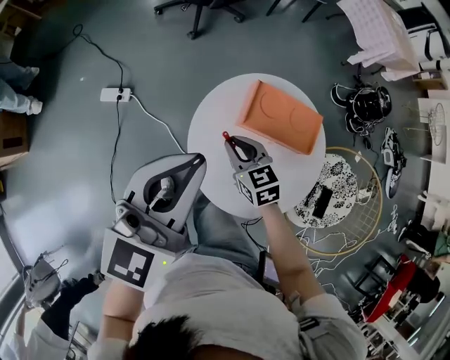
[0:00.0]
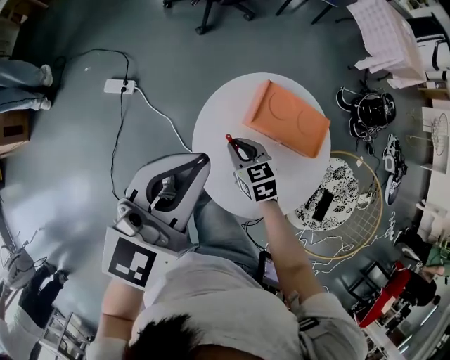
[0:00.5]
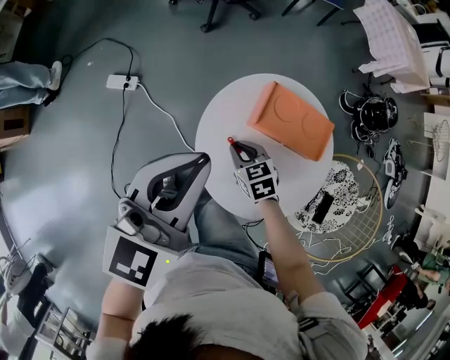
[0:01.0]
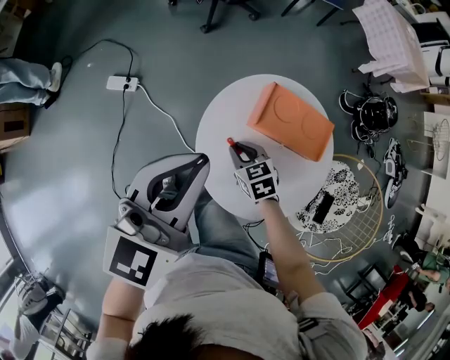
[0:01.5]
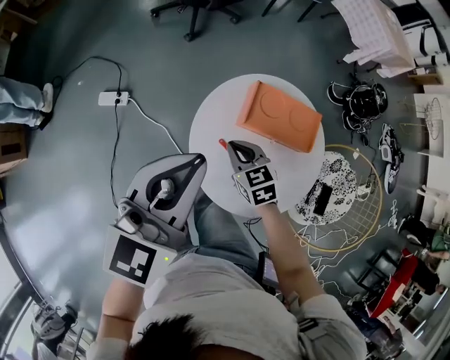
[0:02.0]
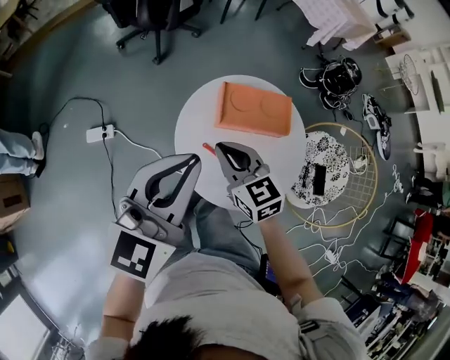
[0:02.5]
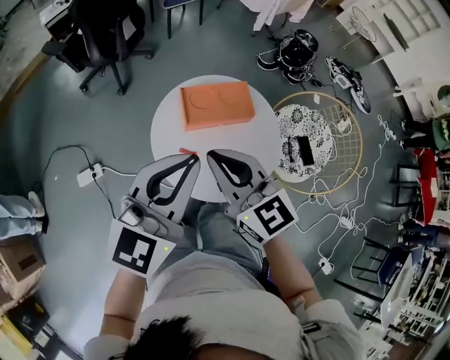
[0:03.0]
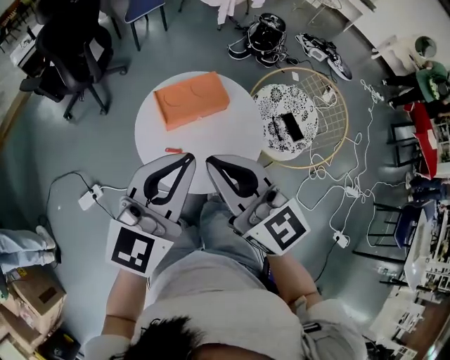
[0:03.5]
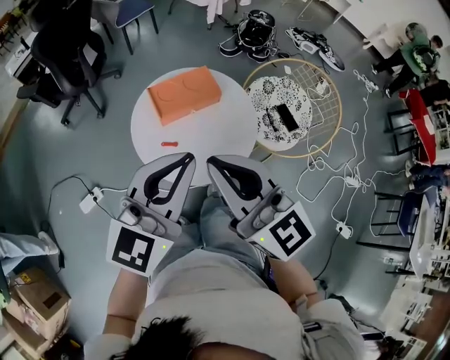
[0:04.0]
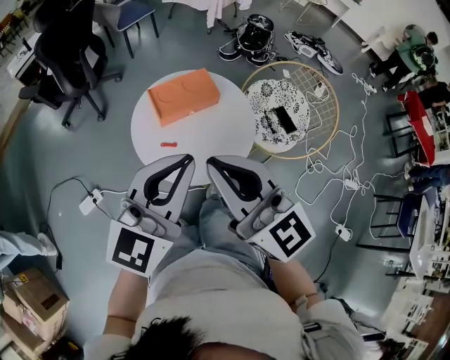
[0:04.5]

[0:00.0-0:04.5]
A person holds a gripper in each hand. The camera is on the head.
0:02.0 to 0:04.5: The right gripper travels upward by roughly 35 cm, and angles its fingers upward, by about 50 degrees; the left gripper shifts by some 15 cm, and changes its angle by approximately 40 degrees.

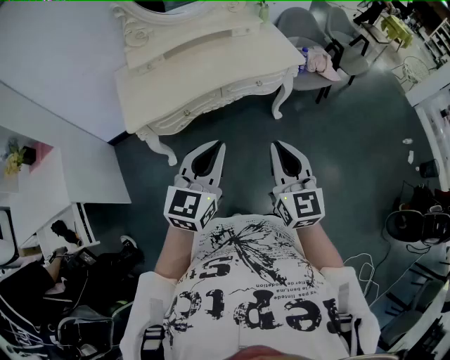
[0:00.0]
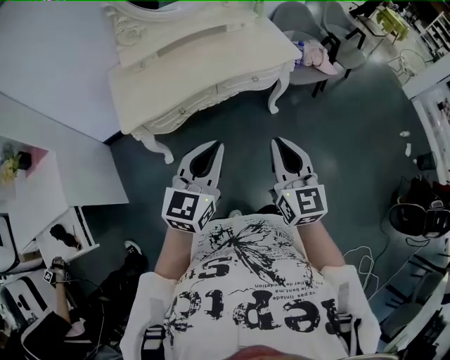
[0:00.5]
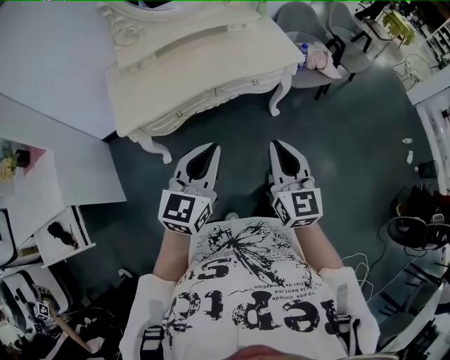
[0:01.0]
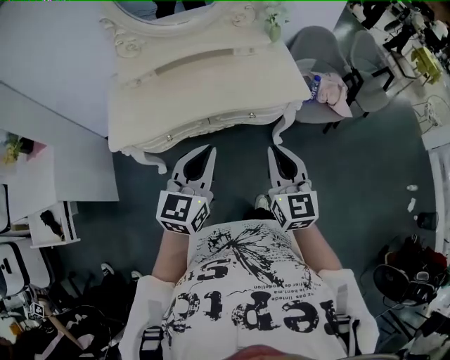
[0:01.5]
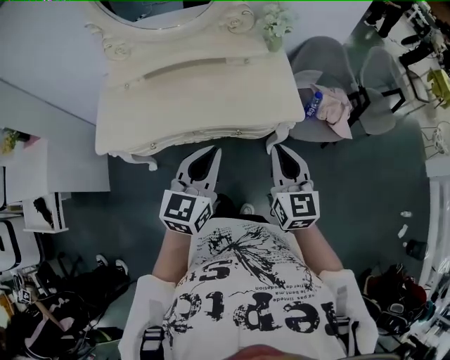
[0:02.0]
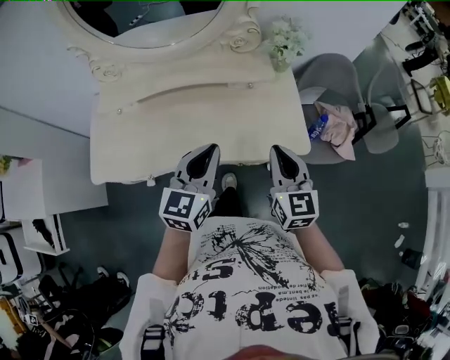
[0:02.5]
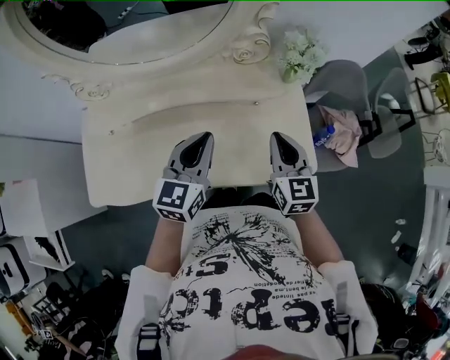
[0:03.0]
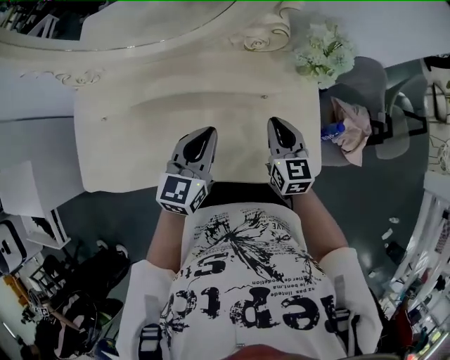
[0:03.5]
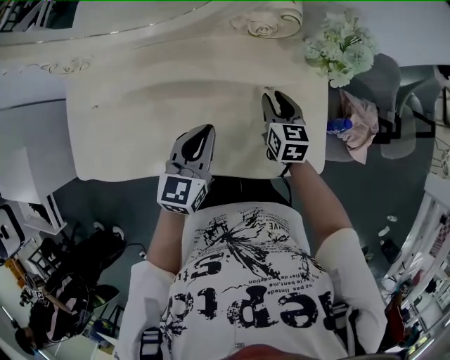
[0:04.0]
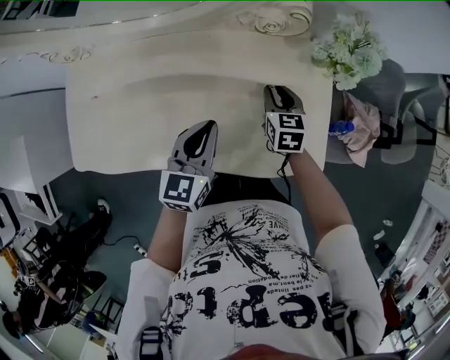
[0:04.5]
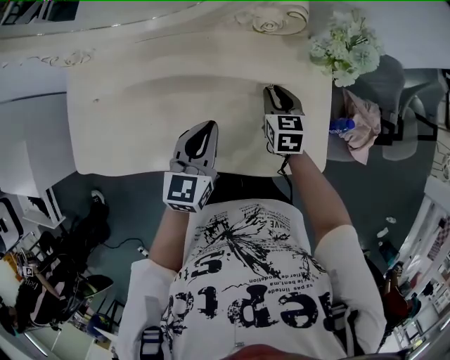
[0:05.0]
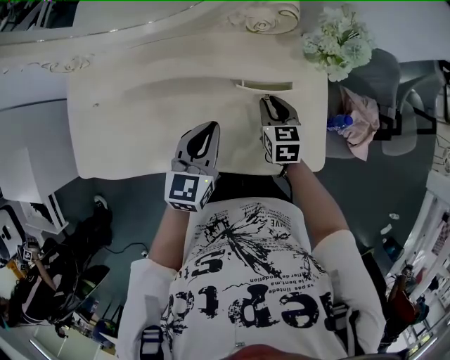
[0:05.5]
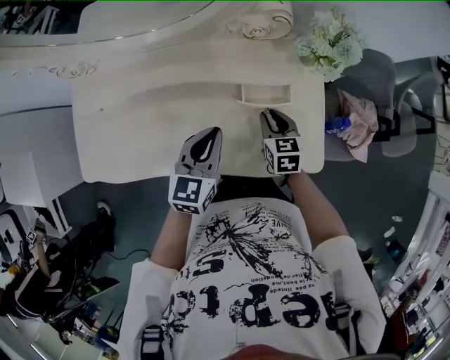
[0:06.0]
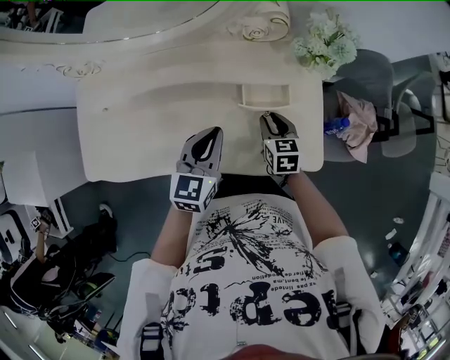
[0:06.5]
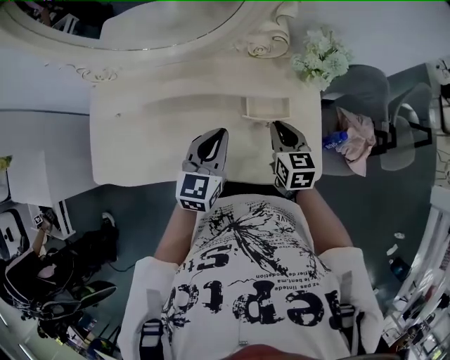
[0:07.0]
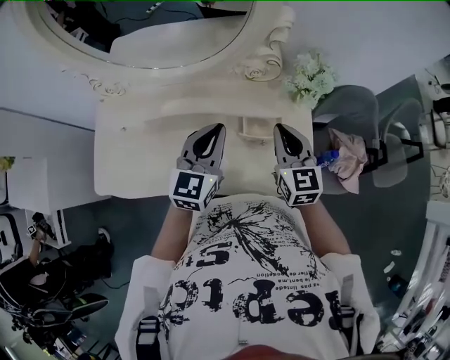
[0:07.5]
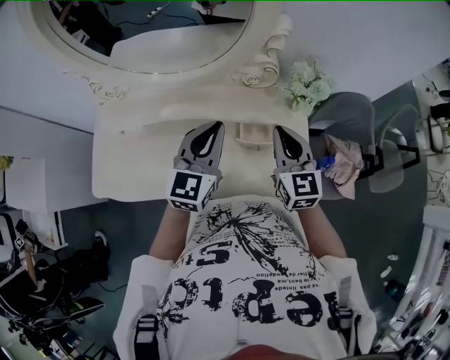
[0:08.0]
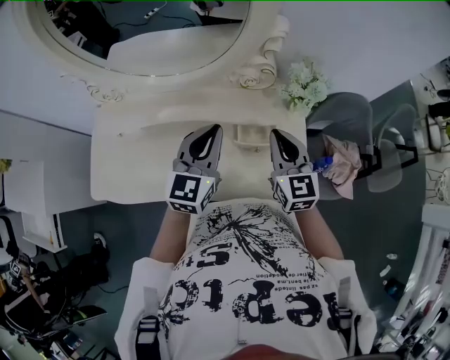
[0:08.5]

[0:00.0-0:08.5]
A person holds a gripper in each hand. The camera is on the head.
0:00.0 to 0:02.0: The two grippers go approximately 35 cm forward and to the right.
0:02.0 to 0:04.0: Both grippers travel together forward and downward, roughly 40 cm. The right gripper rotates some 20 degrees, and opens up.
0:04.0 to 0:06.5: The right gripper is displaced backward by roughly 5 cm.
0:06.5 to 0:08.5: The left gripper travels upward and forward by some 15 cm, while the right gripper goes some 25 cm upward, rotates roughly 30 degrees, and closes its fingers.

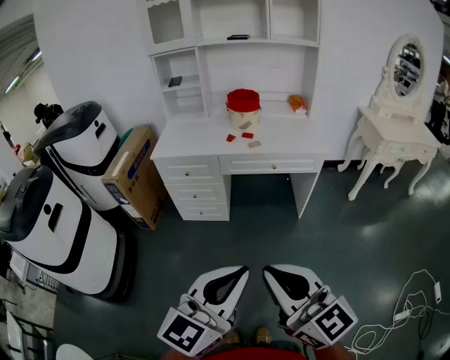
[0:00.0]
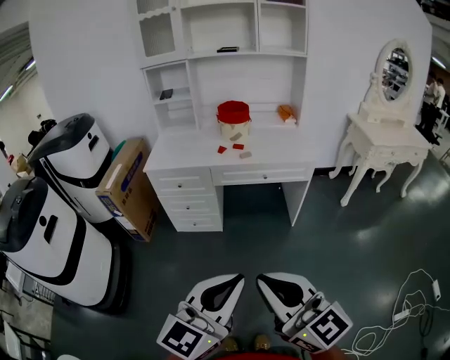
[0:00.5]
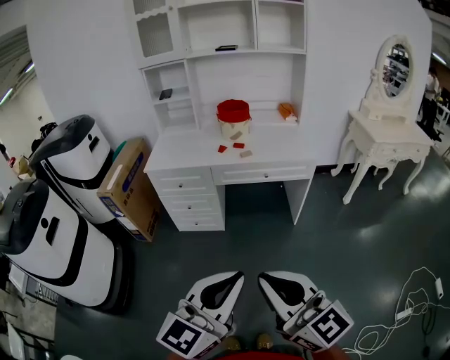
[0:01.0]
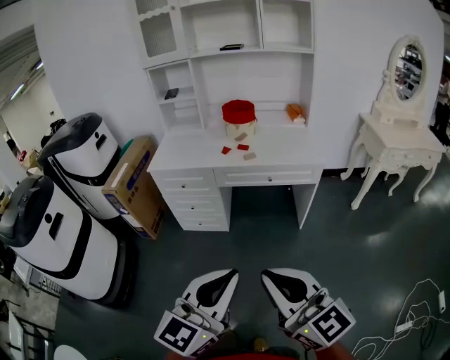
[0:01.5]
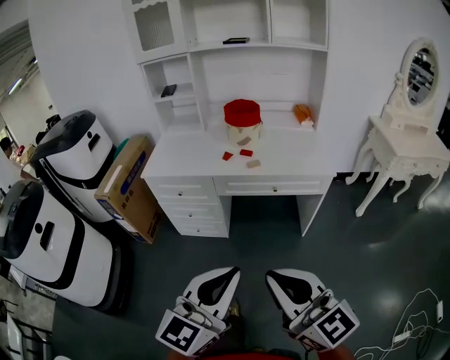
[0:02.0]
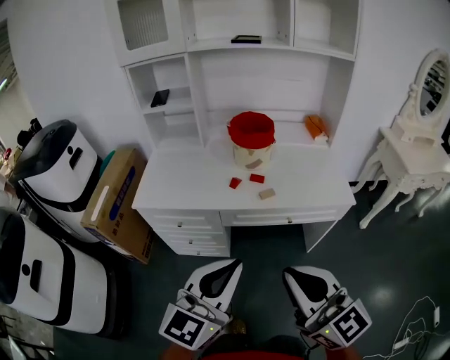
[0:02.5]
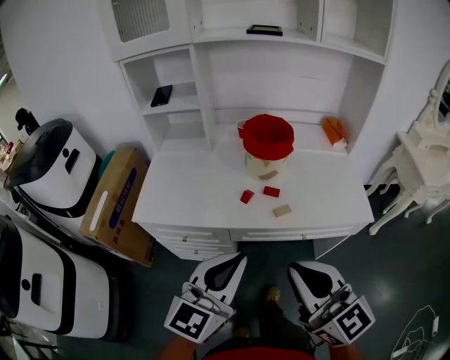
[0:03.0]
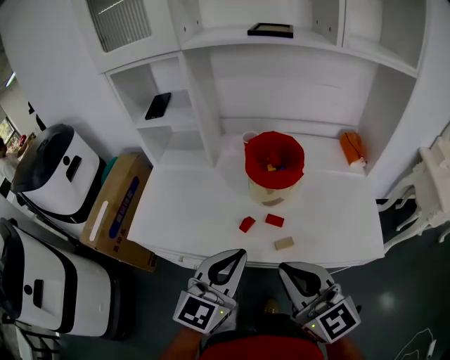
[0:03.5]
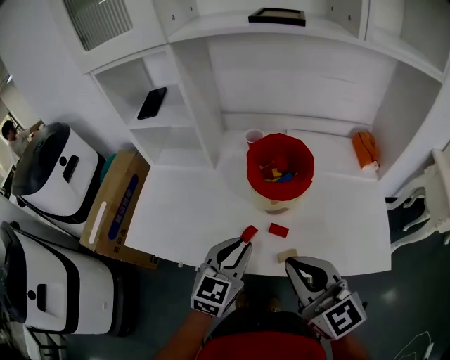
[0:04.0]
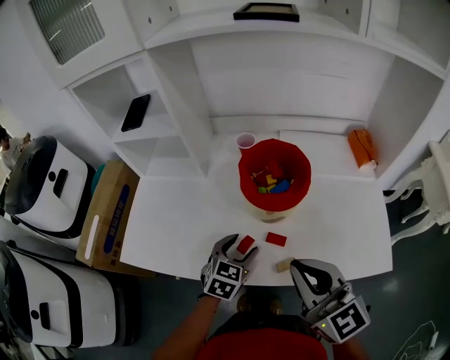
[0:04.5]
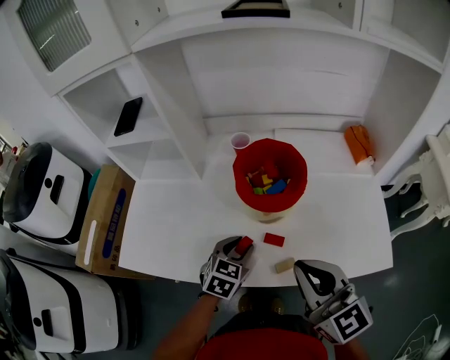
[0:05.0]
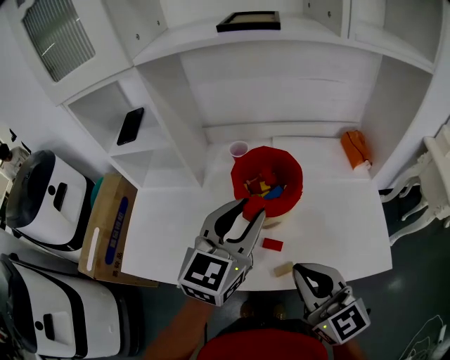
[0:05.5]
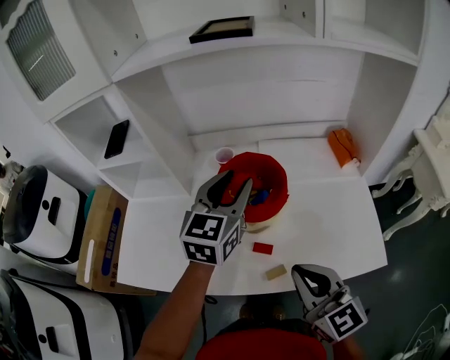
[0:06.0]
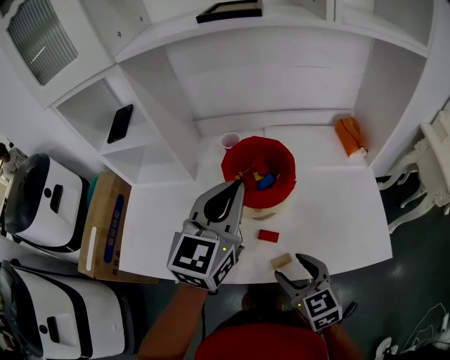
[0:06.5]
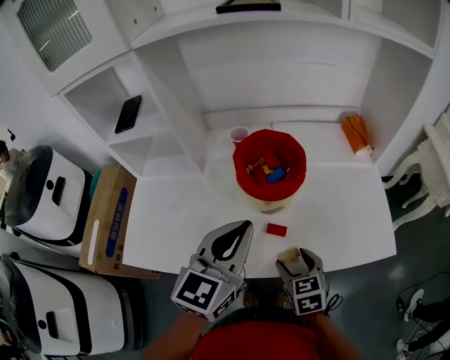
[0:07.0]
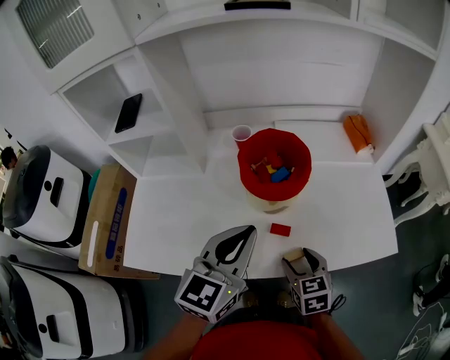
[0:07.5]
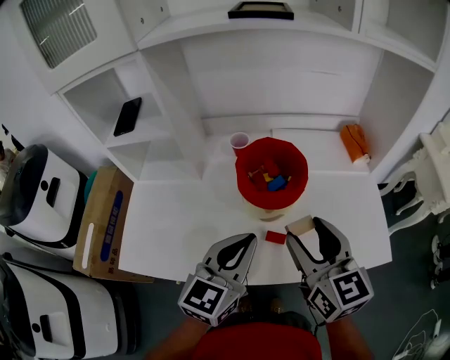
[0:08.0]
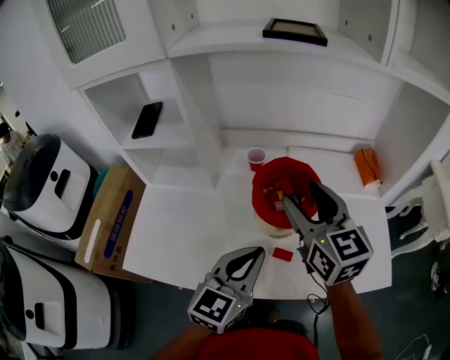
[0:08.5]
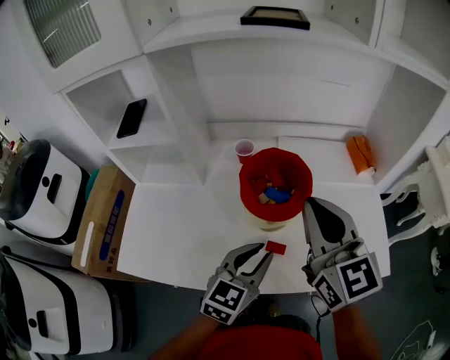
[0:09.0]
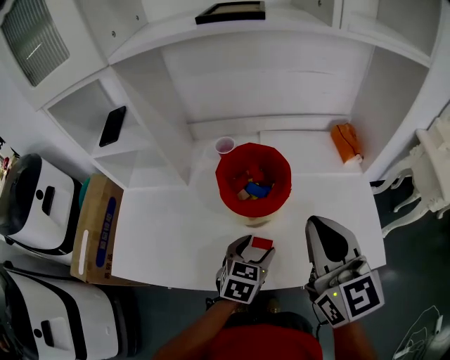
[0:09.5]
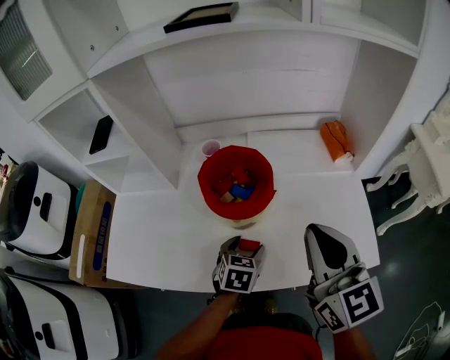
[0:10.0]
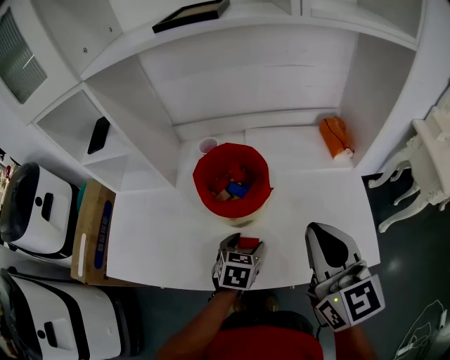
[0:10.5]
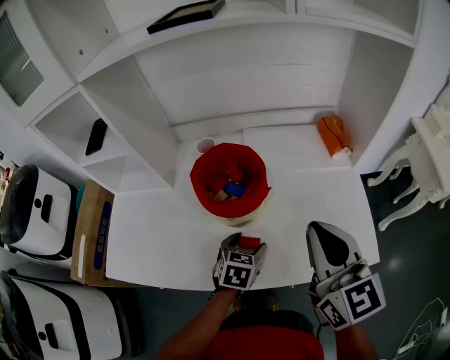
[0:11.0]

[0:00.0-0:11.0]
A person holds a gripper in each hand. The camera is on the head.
0:00.0 to 0:02.0: The grippers both shift forward by about 15 cm.
0:02.0 to 0:03.5: The two grippers travel together, forward, some 50 cm.
0:03.5 to 0:05.5: The left gripper moves forward, roughly 20 cm, reaches approximately 20 cm downward, then returns, and opens its fingers. The right gripper travels forward by some 10 cm.
0:05.5 to 0:07.5: The right gripper heads downward, covering some 20 cm, points its fingers roughly 40 degrees further downward, and opens its fingers; the left gripper travels backward by some 5 cm, and closes its fingers.
0:07.5 to 0:09.0: The left gripper travels downward by roughly 10 cm, while the right gripper heads upward and forward, covering about 30 cm, points its fingers roughly 40 degrees further upward, and closes up.
0:09.0 to 0:11.0: The right gripper moves to the right, some 10 cm. Meanwhile the left gripper travels downward by roughly 15 cm, rotates roughly 30 degrees, and opens its fingers.

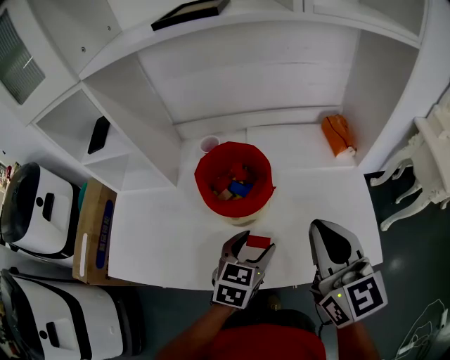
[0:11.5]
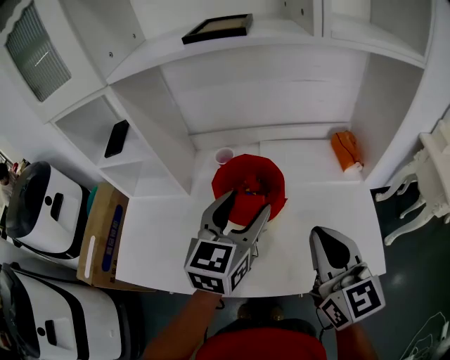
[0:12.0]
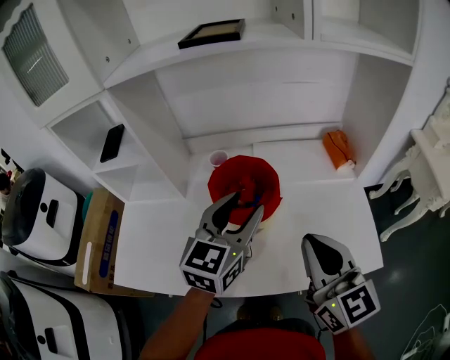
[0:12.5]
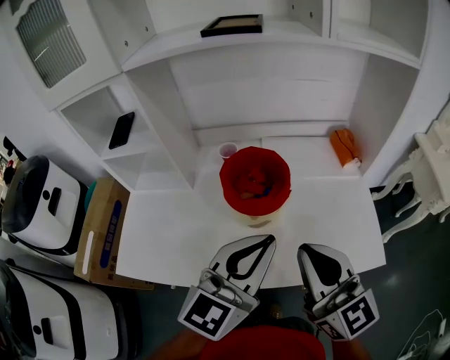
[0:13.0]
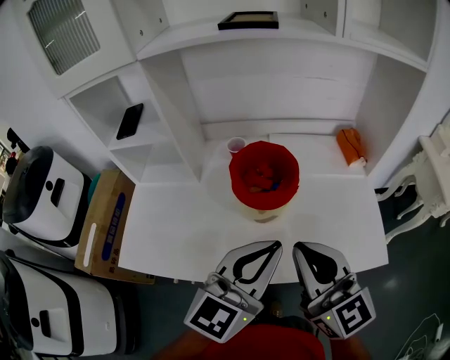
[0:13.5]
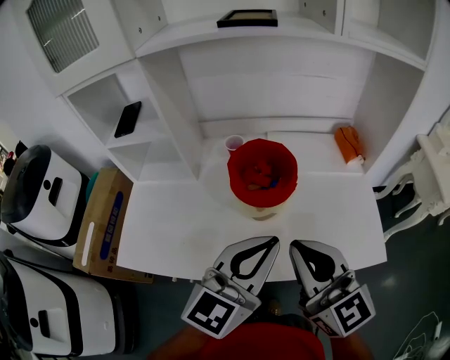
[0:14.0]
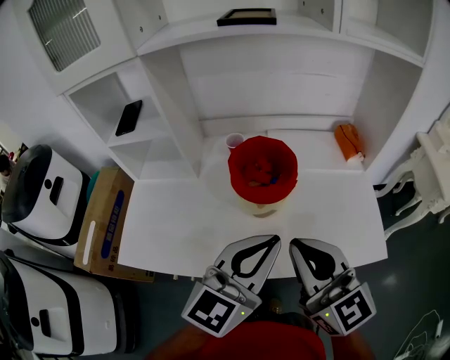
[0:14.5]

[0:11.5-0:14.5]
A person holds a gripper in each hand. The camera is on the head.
0:11.5 to 0:13.0: The right gripper moves to the left and backward, some 10 cm. Meanwhile the left gripper heads upward, covering some 20 cm, angles its fingers upward, by approximately 30 degrees, and closes its fingers.
0:13.0 to 0:14.5: The grippers move only a little.
